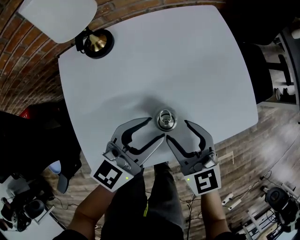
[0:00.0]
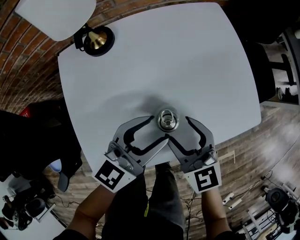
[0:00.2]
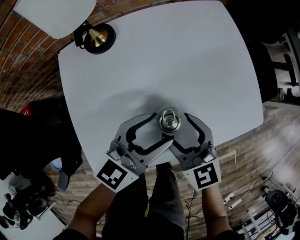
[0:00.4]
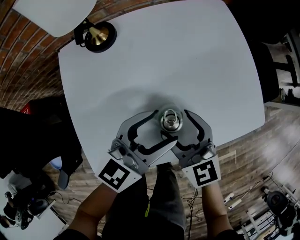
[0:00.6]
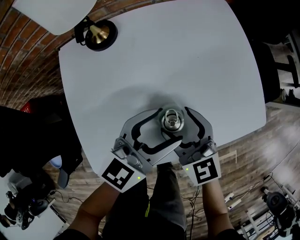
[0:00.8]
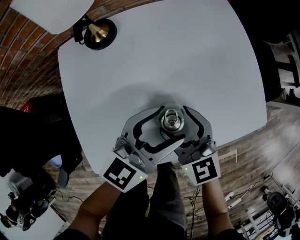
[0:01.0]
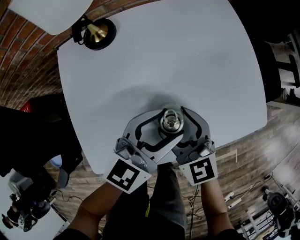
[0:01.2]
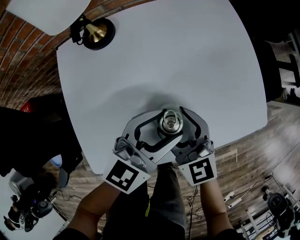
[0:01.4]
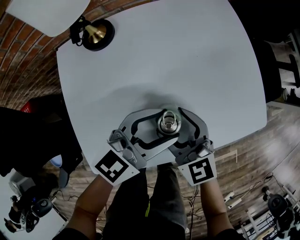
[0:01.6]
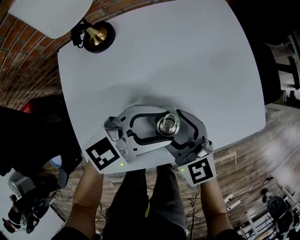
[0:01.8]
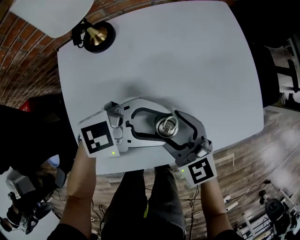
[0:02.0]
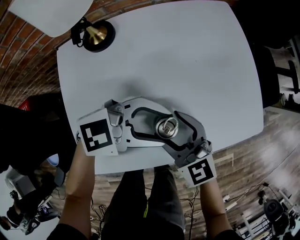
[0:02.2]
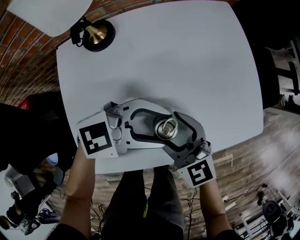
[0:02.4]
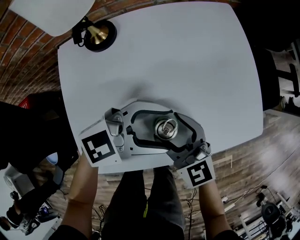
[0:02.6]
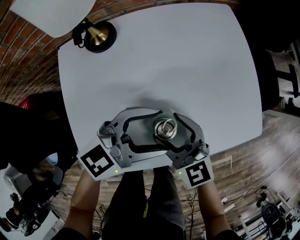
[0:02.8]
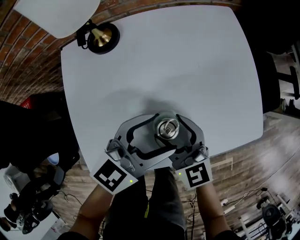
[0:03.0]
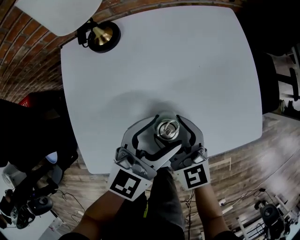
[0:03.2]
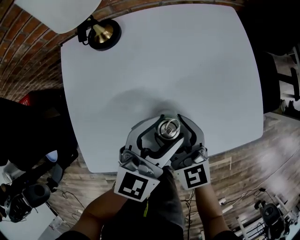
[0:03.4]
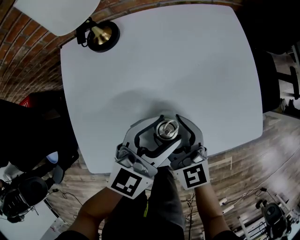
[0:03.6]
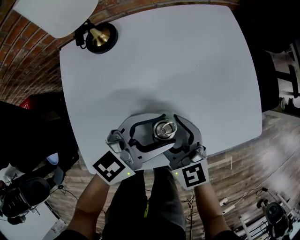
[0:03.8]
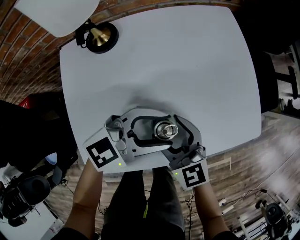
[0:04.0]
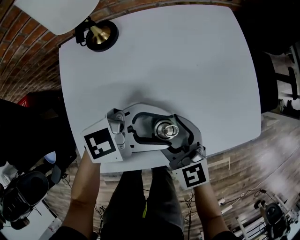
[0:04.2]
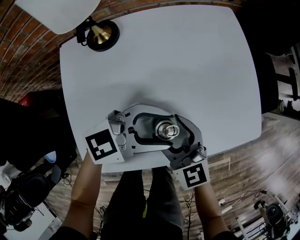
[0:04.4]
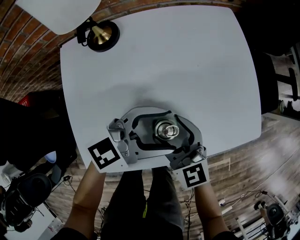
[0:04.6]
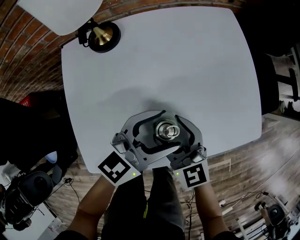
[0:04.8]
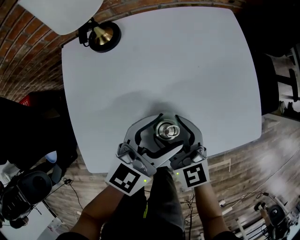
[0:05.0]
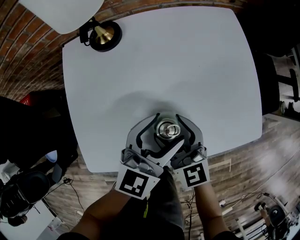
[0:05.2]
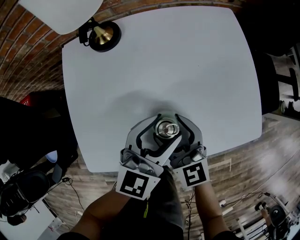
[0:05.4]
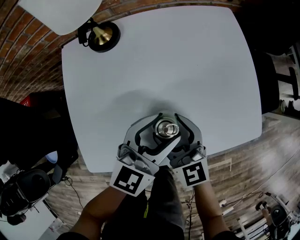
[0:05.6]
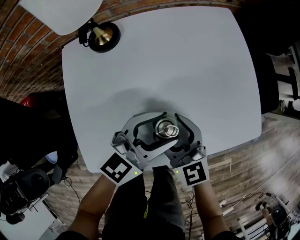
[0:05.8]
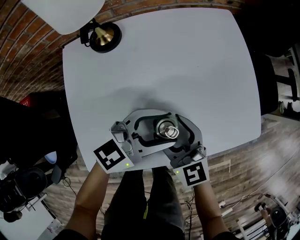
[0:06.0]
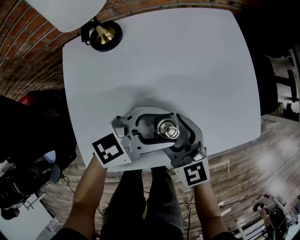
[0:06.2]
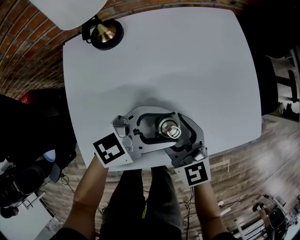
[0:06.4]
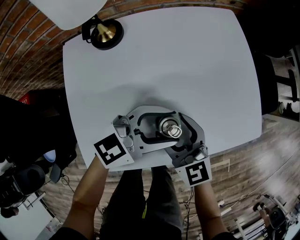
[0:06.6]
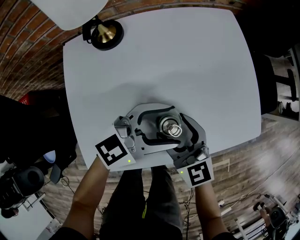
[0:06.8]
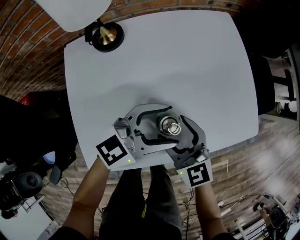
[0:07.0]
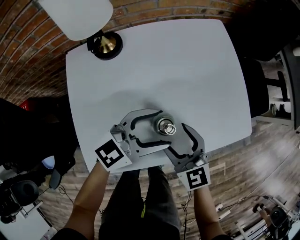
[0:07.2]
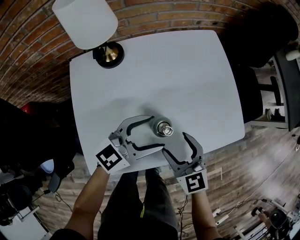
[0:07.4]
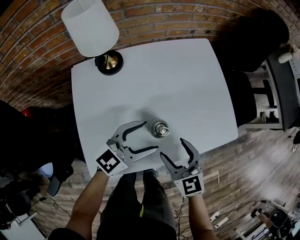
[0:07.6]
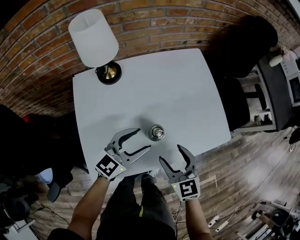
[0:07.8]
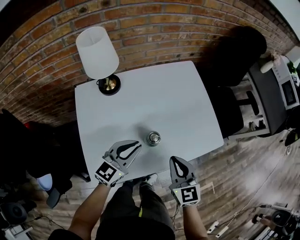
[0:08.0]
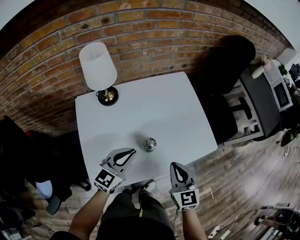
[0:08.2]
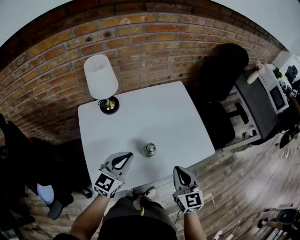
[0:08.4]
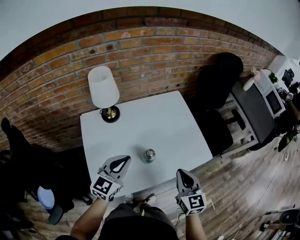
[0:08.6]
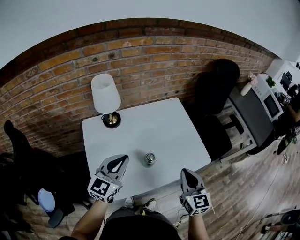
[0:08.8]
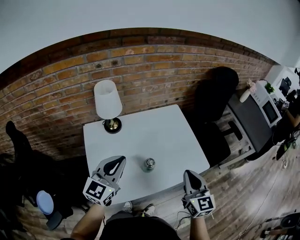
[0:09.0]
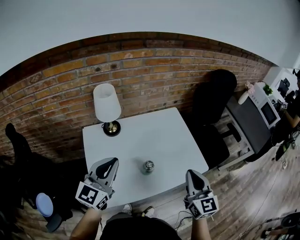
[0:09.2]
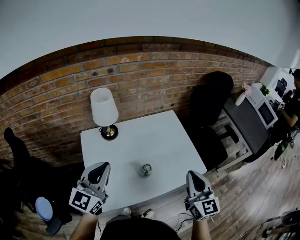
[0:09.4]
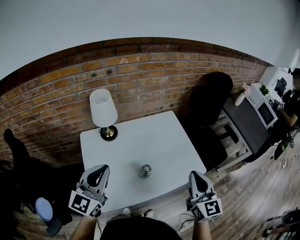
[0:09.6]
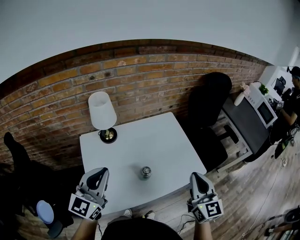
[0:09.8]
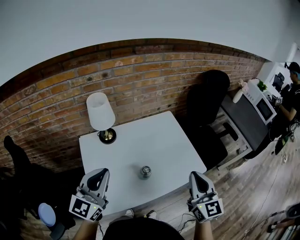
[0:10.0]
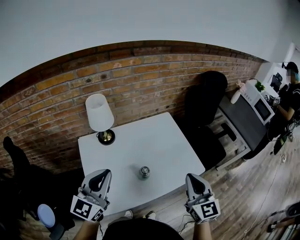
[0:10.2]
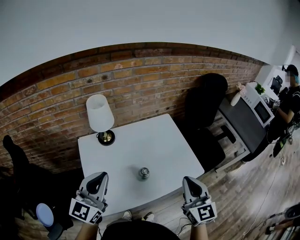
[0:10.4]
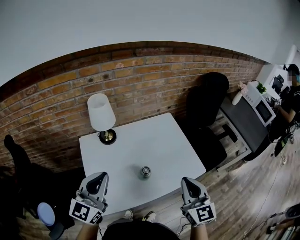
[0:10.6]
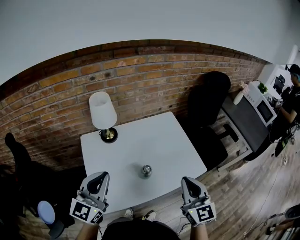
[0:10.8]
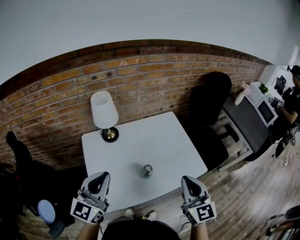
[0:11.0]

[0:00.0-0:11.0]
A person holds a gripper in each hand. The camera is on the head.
0.0 to 1.6 s: The right gripper changes place by about 5 cm.
1.6 to 3.2 s: The left gripper rotates some 20 degrees.
6.2 to 7.8 s: The left gripper goes approximately 5 cm to the left, and changes its angle by approximately 20 degrees; the right gripper heads upward, to the right and backward, covering roughly 10 cm.
7.8 to 9.4 s: The left gripper travels upward and to the left by some 25 cm, swivels approximately 30 degrees, and closes. The right gripper moves upward, approximately 25 cm, turns by approximately 30 degrees, and closes its fingers.
9.4 to 11.0 s: The grippers make only small movements.

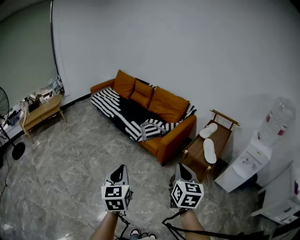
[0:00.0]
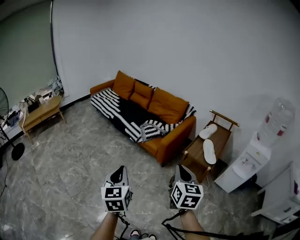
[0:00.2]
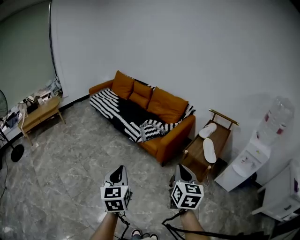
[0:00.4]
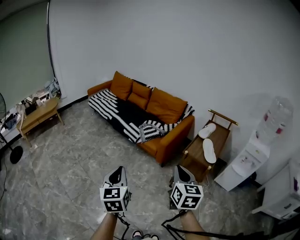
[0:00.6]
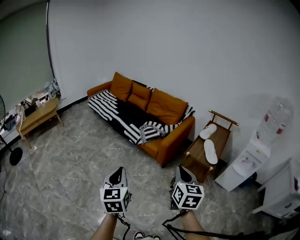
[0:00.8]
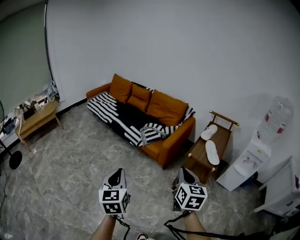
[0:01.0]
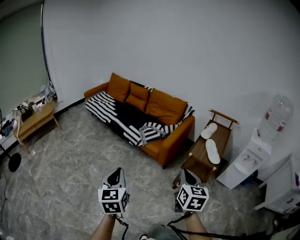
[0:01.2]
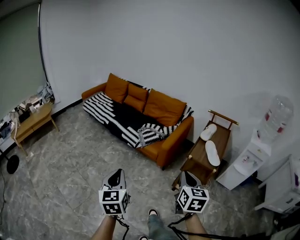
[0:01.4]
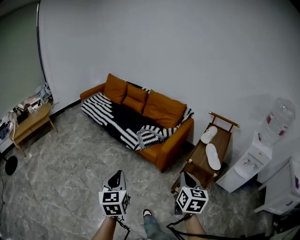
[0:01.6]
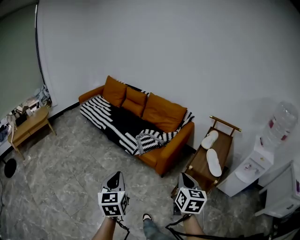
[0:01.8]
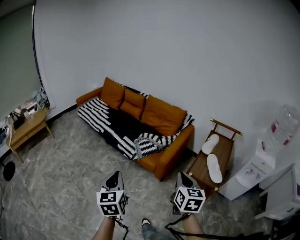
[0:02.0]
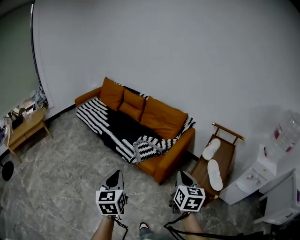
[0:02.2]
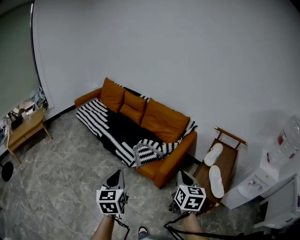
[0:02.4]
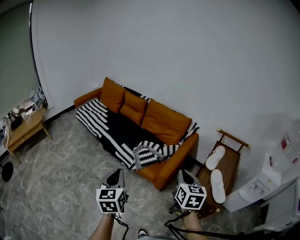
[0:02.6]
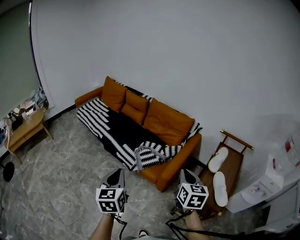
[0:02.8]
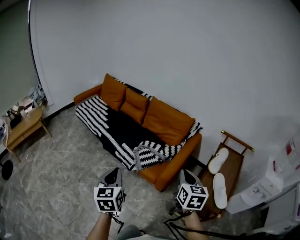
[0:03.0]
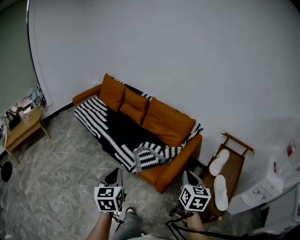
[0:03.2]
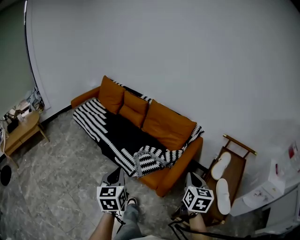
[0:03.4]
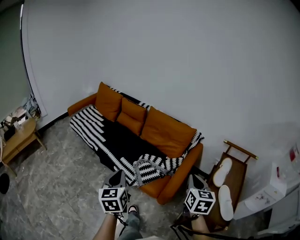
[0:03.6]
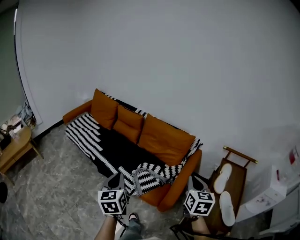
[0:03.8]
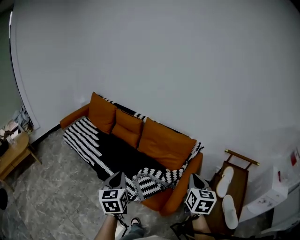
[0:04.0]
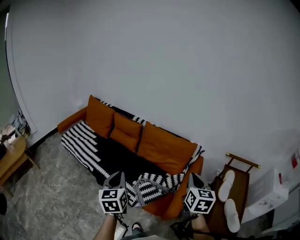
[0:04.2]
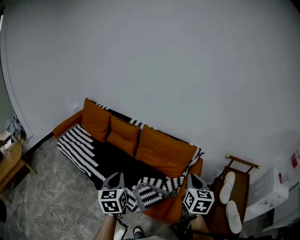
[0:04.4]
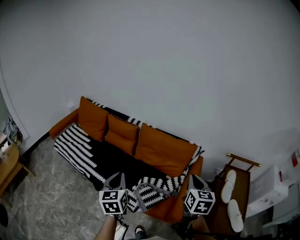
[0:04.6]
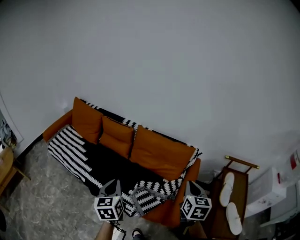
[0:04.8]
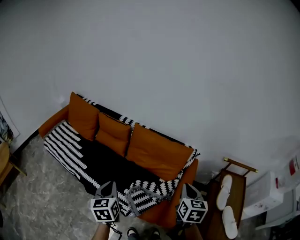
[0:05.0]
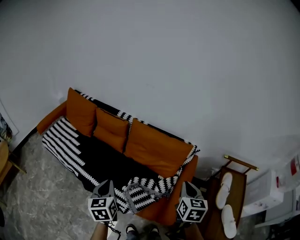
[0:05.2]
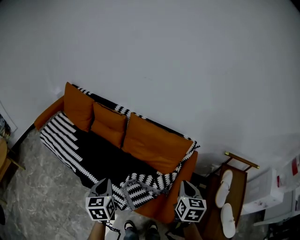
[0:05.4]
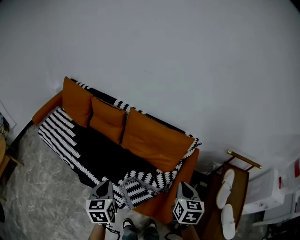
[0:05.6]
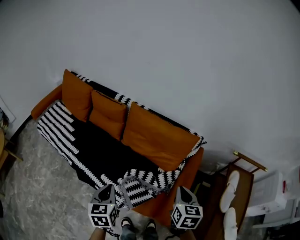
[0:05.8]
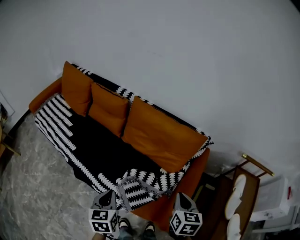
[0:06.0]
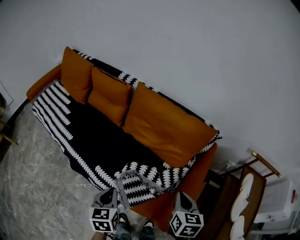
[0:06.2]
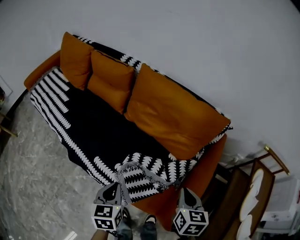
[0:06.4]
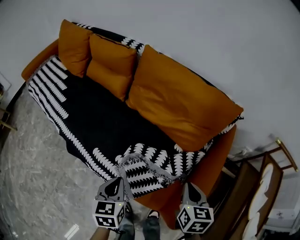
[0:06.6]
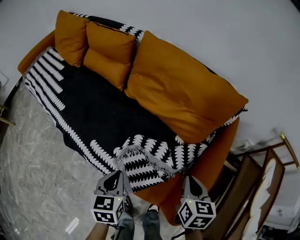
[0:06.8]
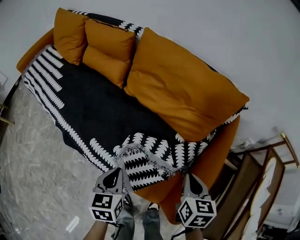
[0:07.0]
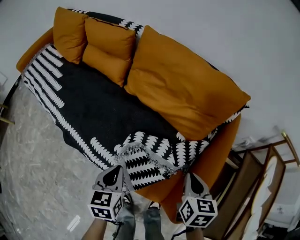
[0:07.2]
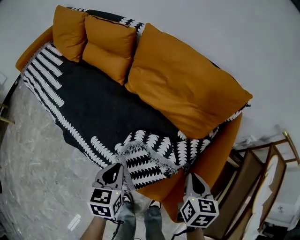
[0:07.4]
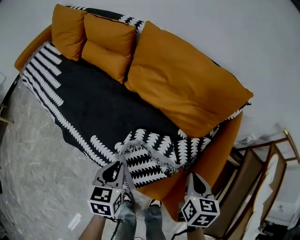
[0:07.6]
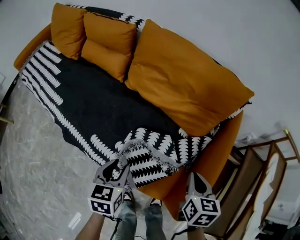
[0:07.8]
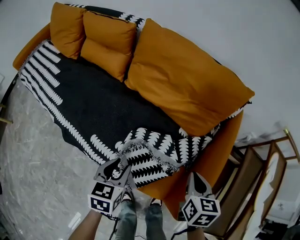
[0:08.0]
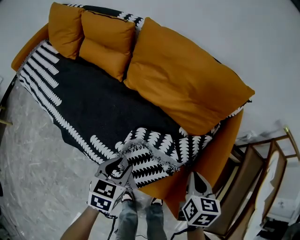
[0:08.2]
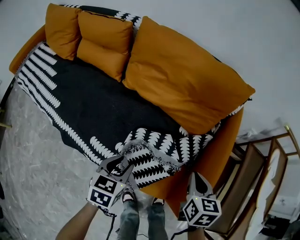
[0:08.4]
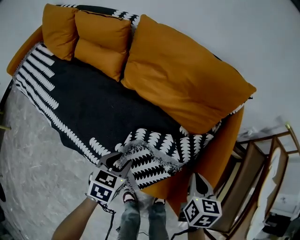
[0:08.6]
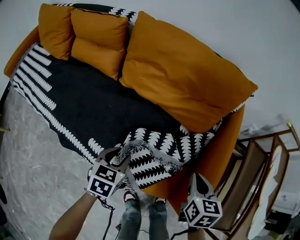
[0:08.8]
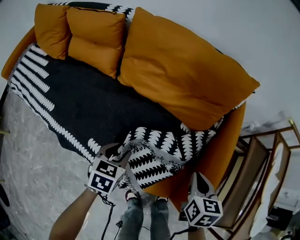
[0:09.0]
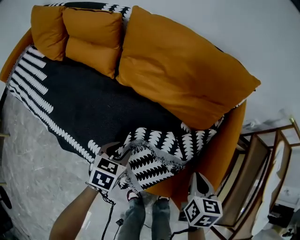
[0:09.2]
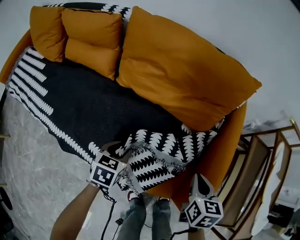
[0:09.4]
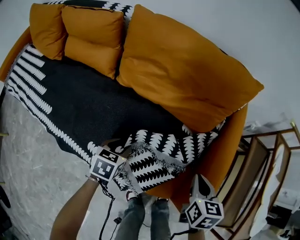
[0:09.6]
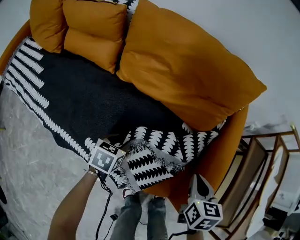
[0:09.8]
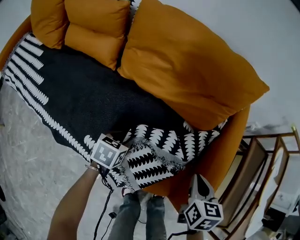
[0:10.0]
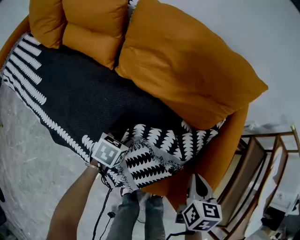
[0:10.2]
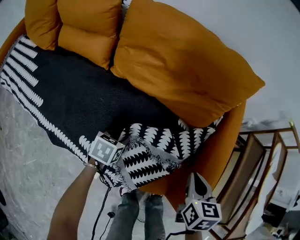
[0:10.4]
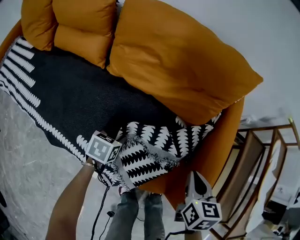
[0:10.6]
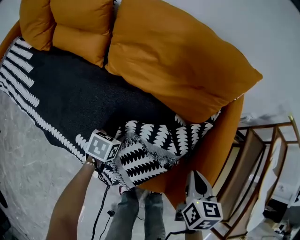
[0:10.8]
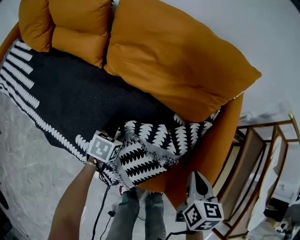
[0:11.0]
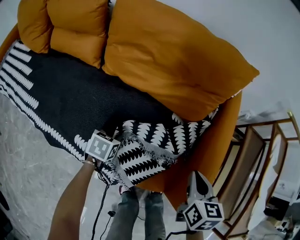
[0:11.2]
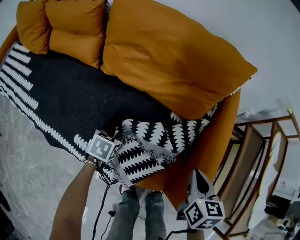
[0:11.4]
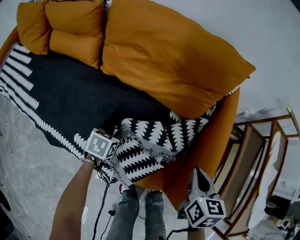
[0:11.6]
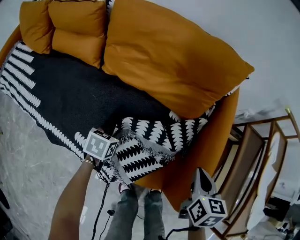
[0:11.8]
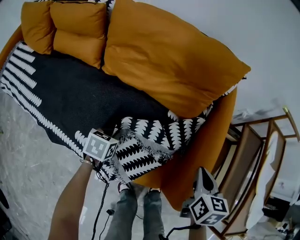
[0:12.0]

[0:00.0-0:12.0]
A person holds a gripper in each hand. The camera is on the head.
0.0 to 1.6 s: The left gripper moves forward and to the left, approximately 10 cm. The right gripper is displaced forward by approximately 5 cm.
1.6 to 3.0 s: Both grippers travel together forward, about 30 cm.
3.0 to 4.4 s: Both grippers move forward, roughly 30 cm.
4.4 to 6.0 s: The left gripper travels downward by about 25 cm, and turns by roughly 20 degrees; the right gripper is displaced downward and forward by some 25 cm.
6.0 to 7.6 s: Both grippers move downward, approximately 20 cm.
7.6 to 9.0 s: The left gripper moves forward and downward, some 10 cm, changes its angle by about 30 degrees, and opens its fingers.
9.0 to 10.4 s: The left gripper heads downward, covering about 10 cm.
10.4 to 12.0 s: The right gripper goes approximately 5 cm to the right. The left gripper closes up.

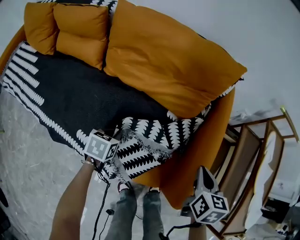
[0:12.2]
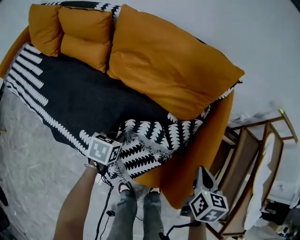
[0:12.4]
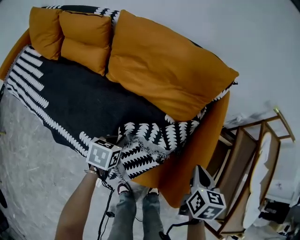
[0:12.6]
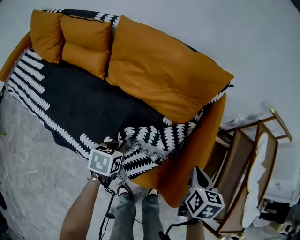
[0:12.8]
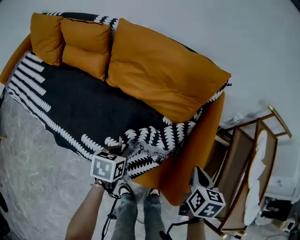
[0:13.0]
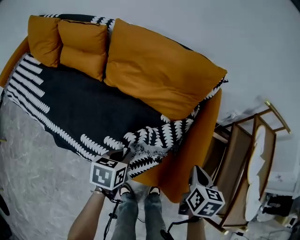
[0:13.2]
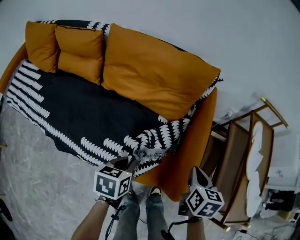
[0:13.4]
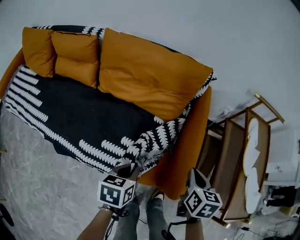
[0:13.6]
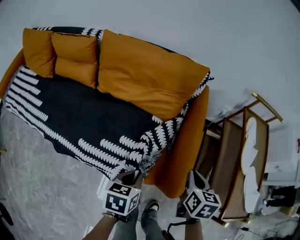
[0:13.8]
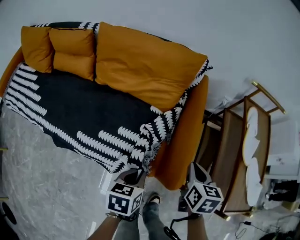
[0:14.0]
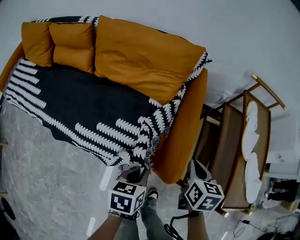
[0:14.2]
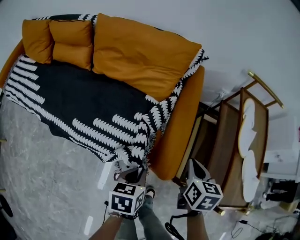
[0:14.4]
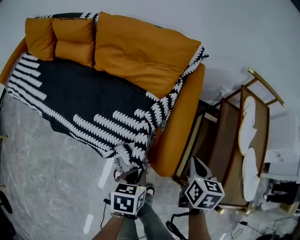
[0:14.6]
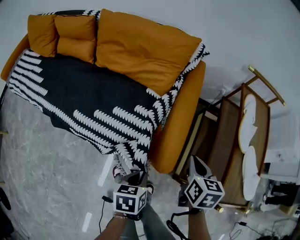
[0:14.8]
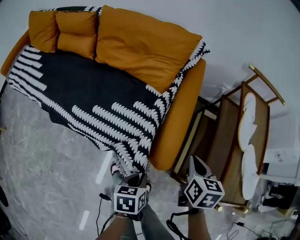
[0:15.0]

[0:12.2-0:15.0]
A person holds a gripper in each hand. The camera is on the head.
12.2 to 13.6 s: The left gripper heads upward, to the right and backward, covering about 20 cm, while the right gripper changes place by roughly 5 cm.
13.6 to 15.0 s: The right gripper moves to the right and backward, approximately 10 cm. Meanwhile the left gripper is displaced to the right and backward by about 20 cm.
